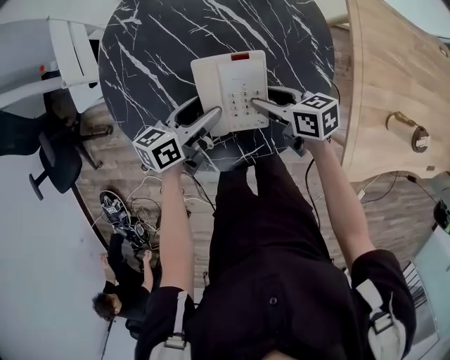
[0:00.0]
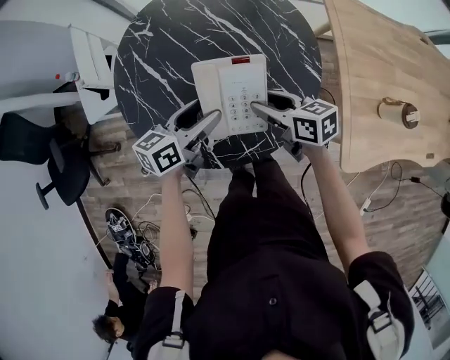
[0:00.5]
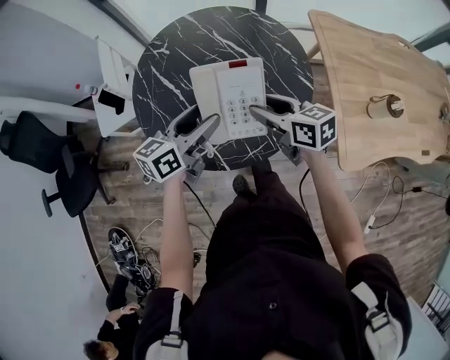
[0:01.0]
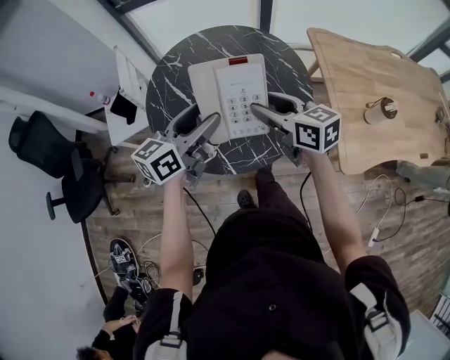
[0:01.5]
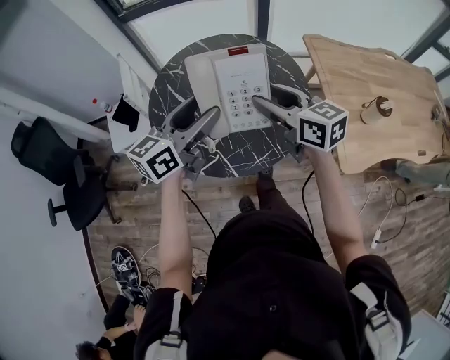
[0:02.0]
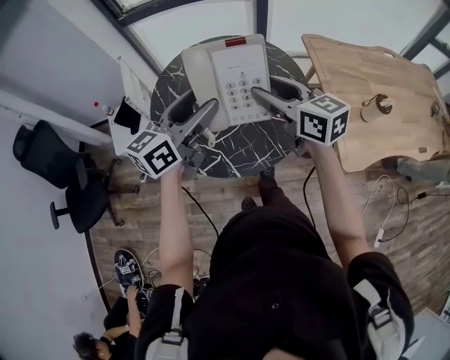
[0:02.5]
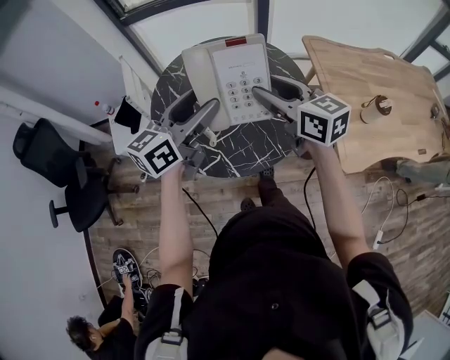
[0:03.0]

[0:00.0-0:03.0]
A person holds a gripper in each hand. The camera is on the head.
0:00.0 to 0:01.5: The right gripper is displaced upward by about 25 cm, and turns by approximately 30 degrees. The left gripper moves upward and backward, some 25 cm, and swivels roughly 30 degrees.
0:01.5 to 0:03.0: The grippers both shift upward by about 10 cm.

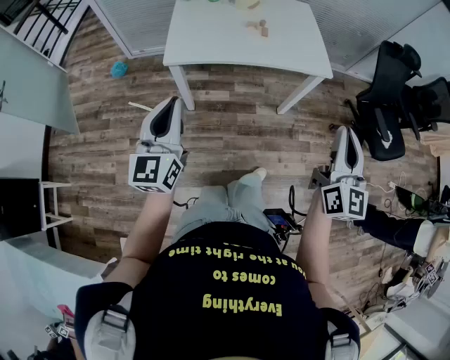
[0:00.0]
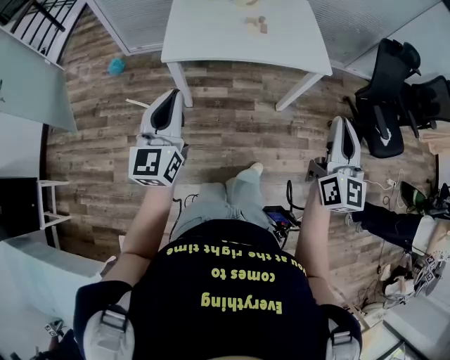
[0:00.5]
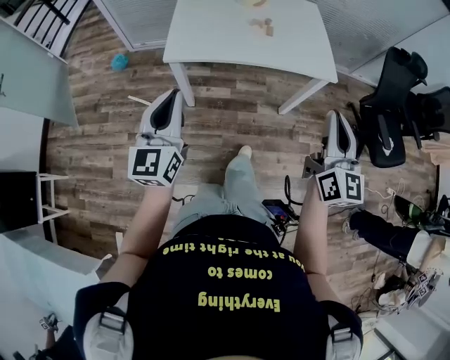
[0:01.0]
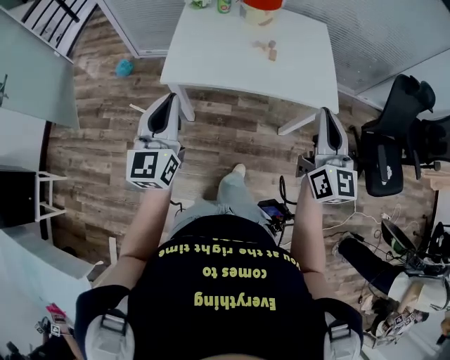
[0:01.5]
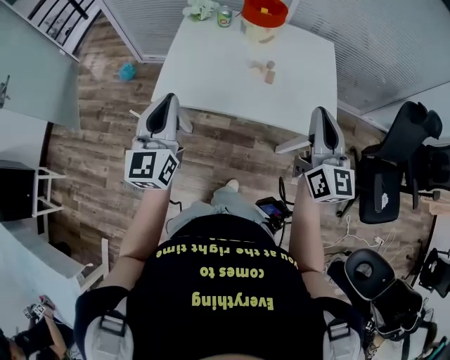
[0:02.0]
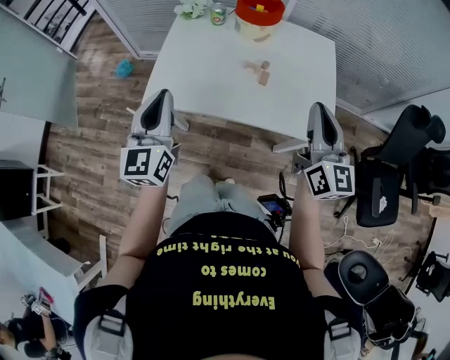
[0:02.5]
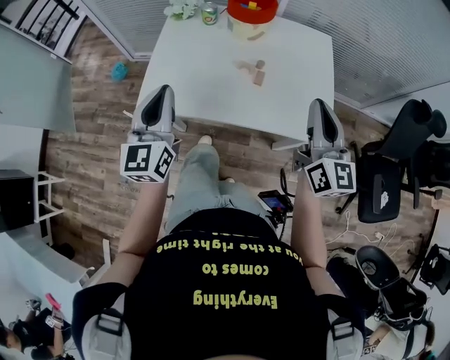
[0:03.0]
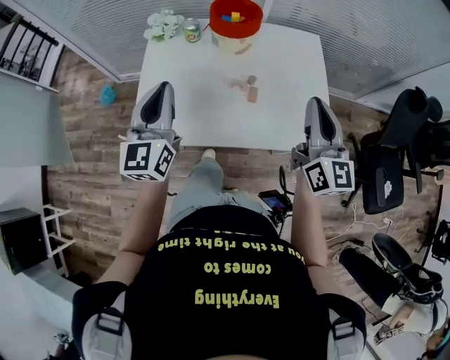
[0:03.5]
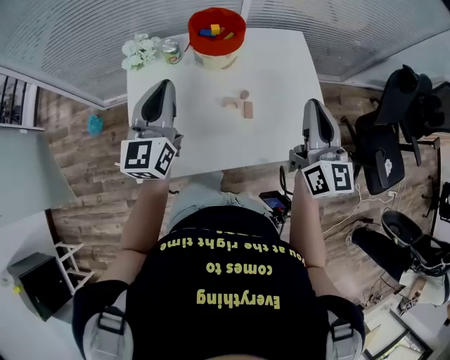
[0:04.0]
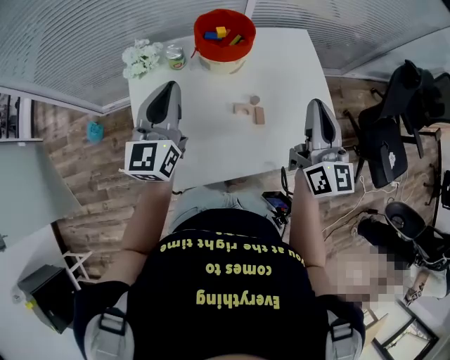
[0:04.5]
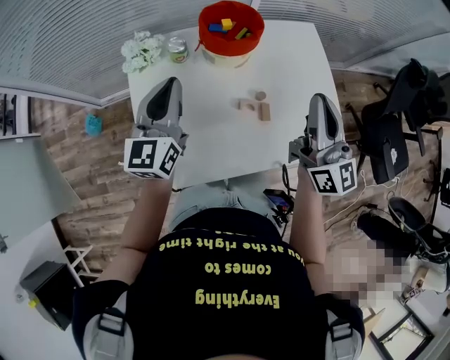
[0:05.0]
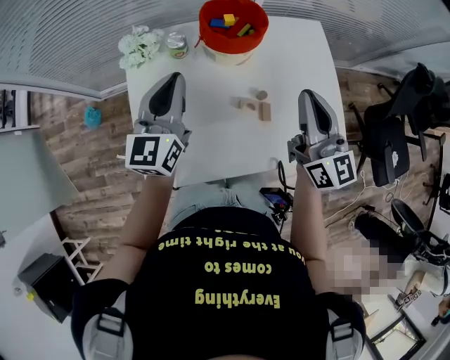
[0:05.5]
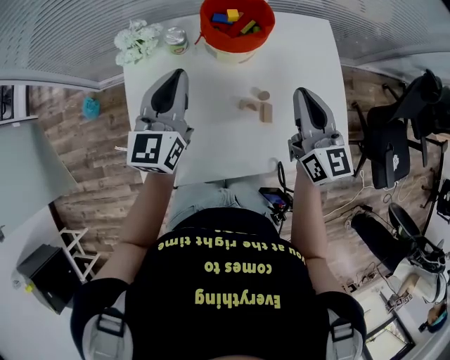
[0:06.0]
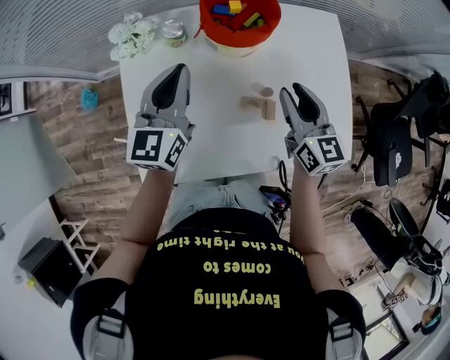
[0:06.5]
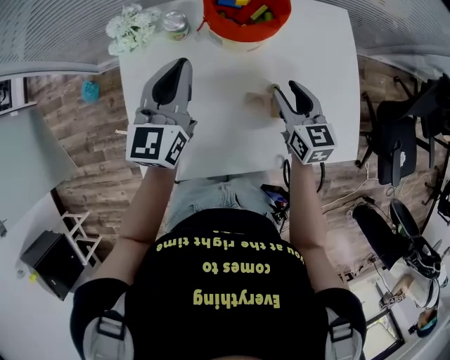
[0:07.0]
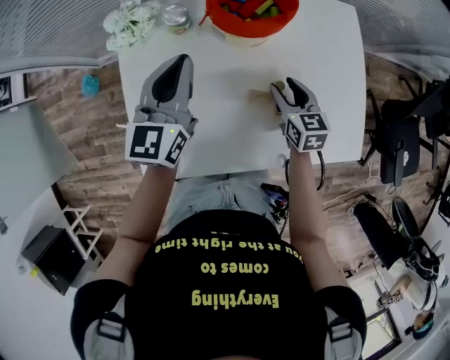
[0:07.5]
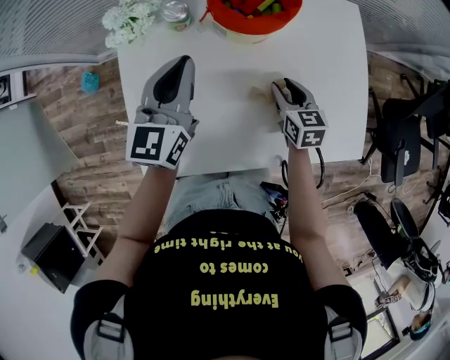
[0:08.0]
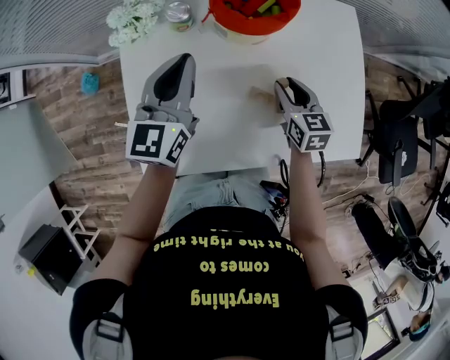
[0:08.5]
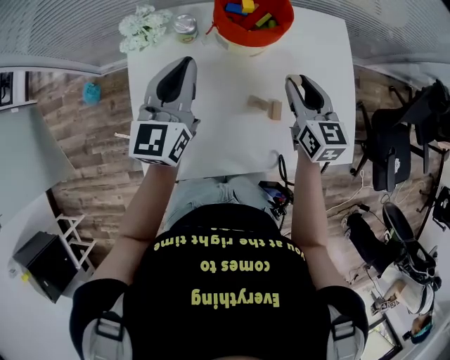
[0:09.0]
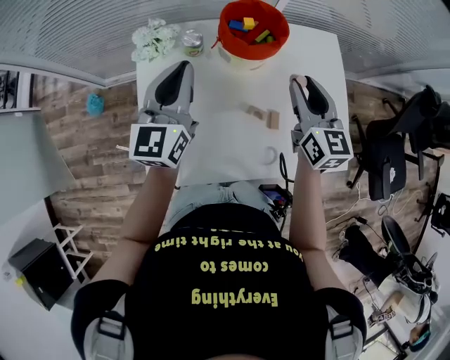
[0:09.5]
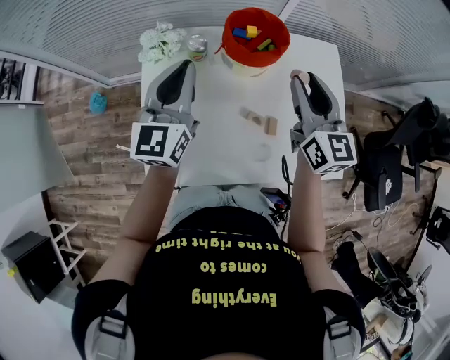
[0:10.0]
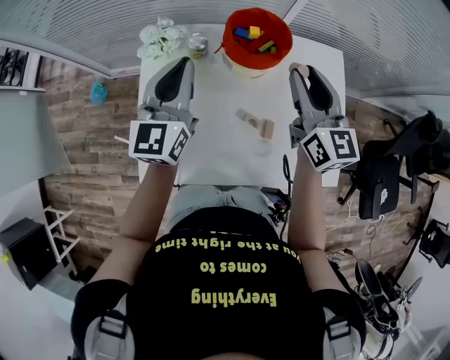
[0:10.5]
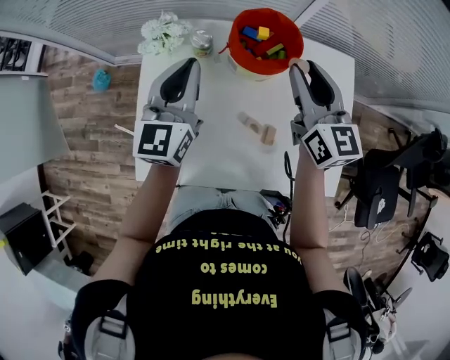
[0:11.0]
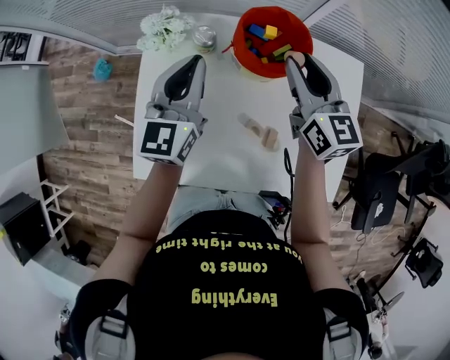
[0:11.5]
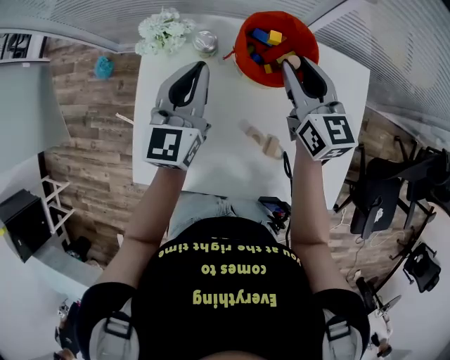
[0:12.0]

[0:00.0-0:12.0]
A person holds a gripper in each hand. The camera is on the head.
0:00.0 to 0:02.0: The grippers both shift forward by roughly 30 cm. The right gripper turns by about 20 degrees.
0:02.0 to 0:04.0: The right gripper is displaced forward by roughly 20 cm, while the left gripper heads forward, covering roughly 30 cm.
0:04.0 to 0:06.0: The right gripper is displaced forward, downward and to the left by approximately 15 cm; the left gripper heads forward and downward, covering approximately 10 cm.
0:06.0 to 0:08.0: The right gripper moves downward, some 25 cm, points its fingers approximately 30 degrees further downward, and opens its fingers; the left gripper is displaced downward by roughly 5 cm.
0:08.0 to 0:10.0: The right gripper heads upward, covering about 30 cm, and tips its fingers upward by approximately 30 degrees; the left gripper is displaced upward by approximately 10 cm.
0:10.0 to 0:12.0: The right gripper travels forward and downward by about 15 cm; the left gripper shifts some 10 cm downward and forward.

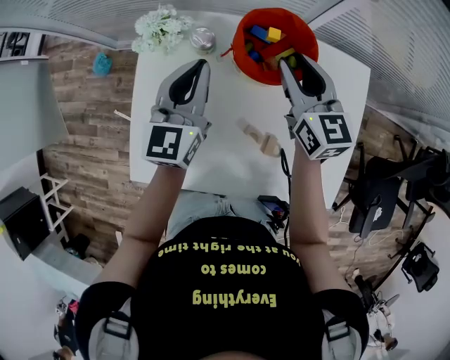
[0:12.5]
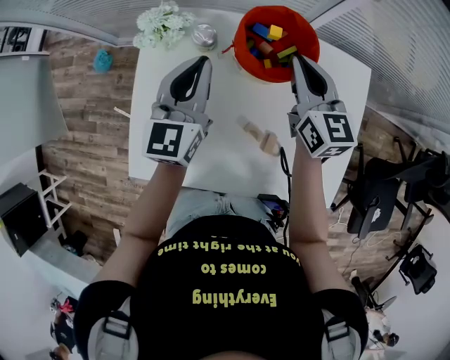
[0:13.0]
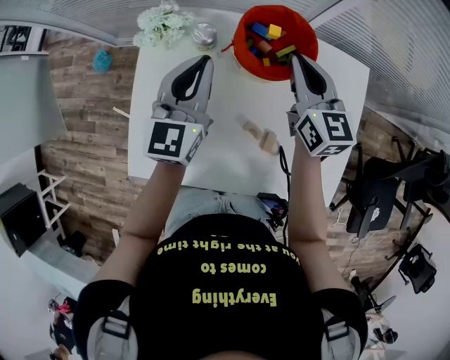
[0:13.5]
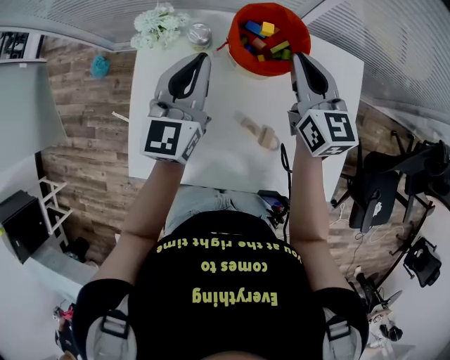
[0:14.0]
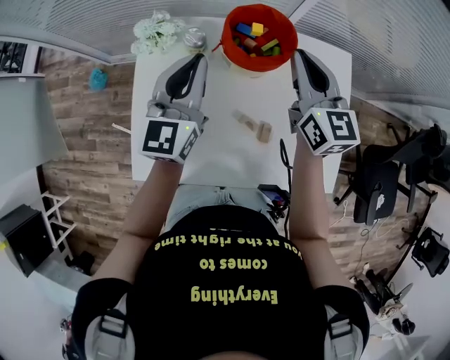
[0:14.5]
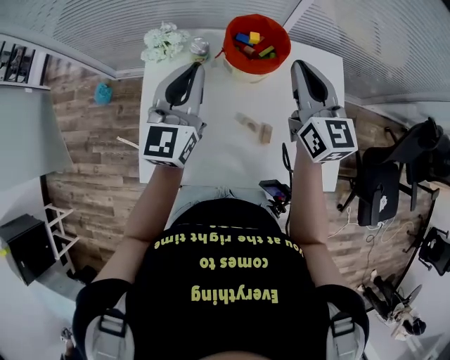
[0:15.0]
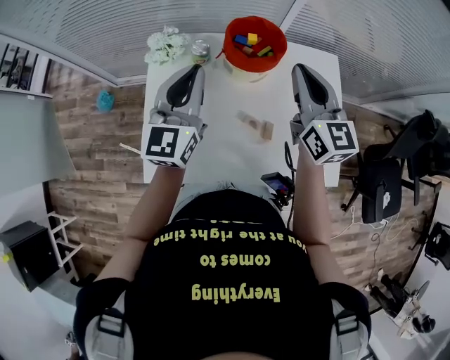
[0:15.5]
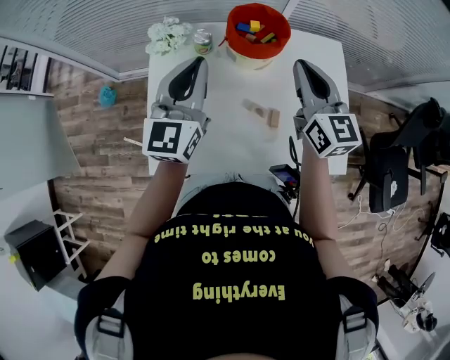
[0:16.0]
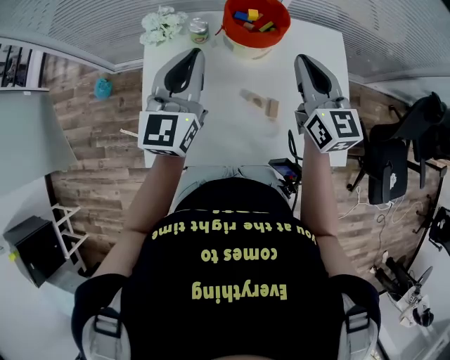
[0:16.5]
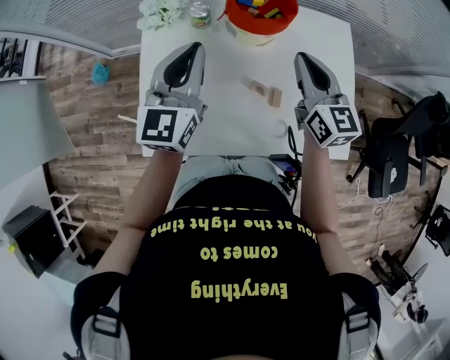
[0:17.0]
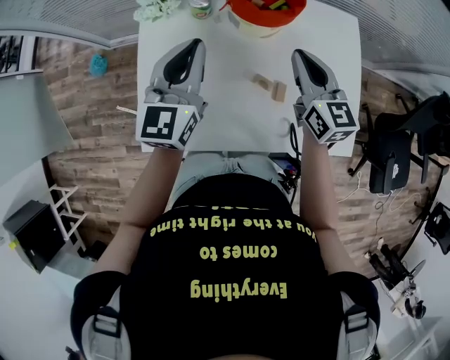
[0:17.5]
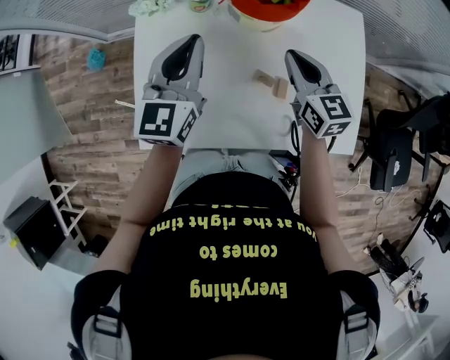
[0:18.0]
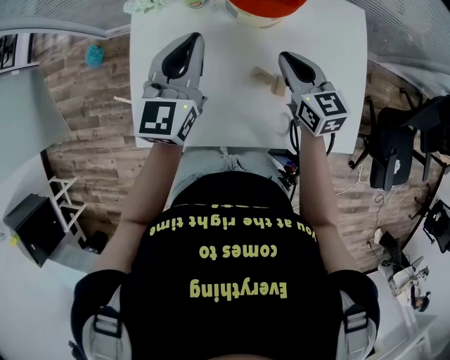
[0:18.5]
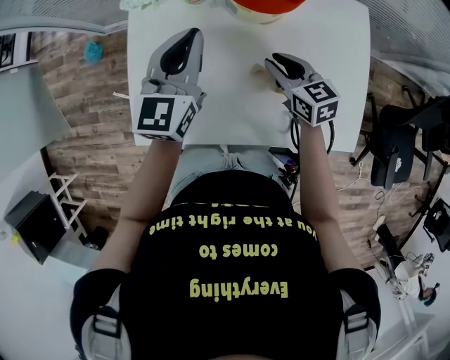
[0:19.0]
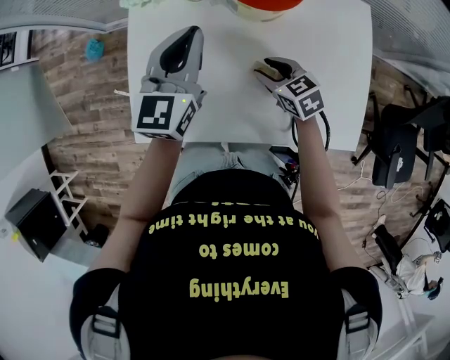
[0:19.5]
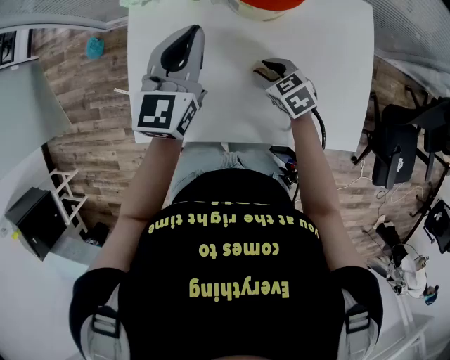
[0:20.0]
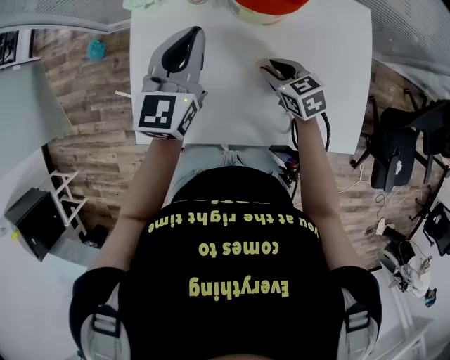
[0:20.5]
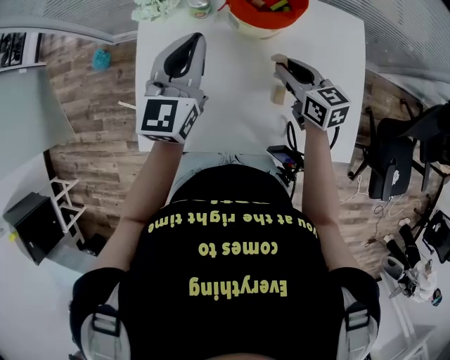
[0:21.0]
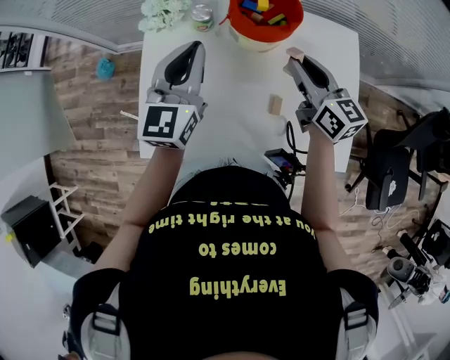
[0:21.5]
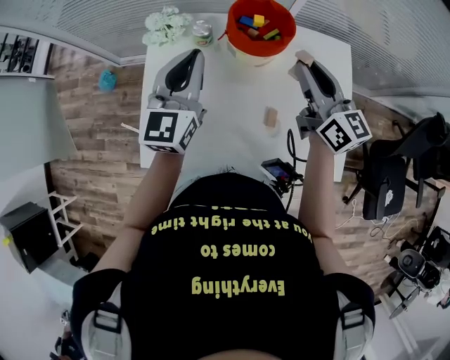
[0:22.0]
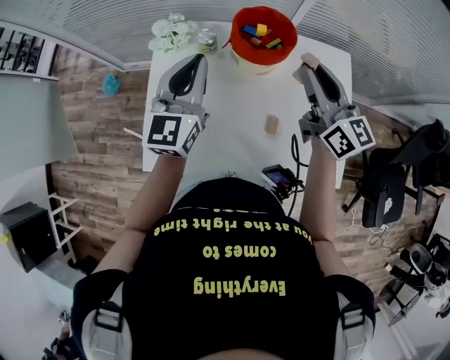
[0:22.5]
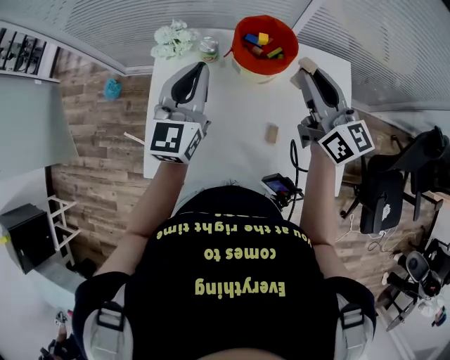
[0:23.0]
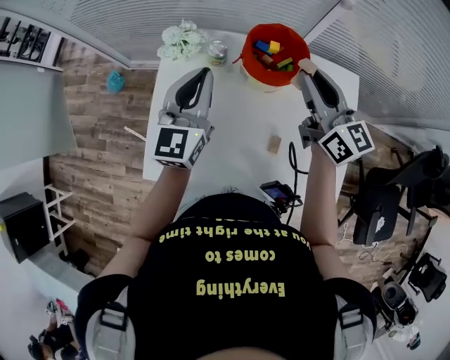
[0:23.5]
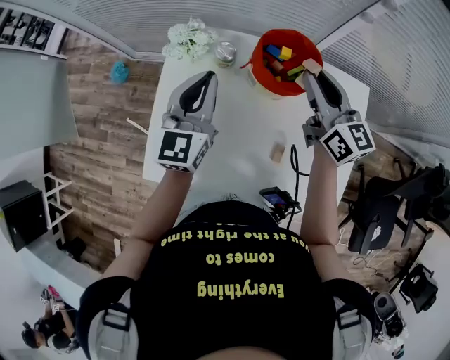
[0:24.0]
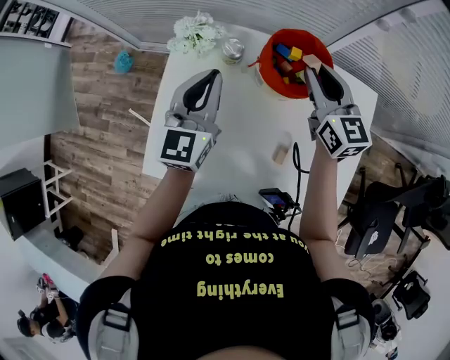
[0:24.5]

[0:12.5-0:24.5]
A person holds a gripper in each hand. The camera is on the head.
0:12.5 to 0:14.5: The grippers both shift upward by approximately 5 cm. The right gripper closes up.
0:14.5 to 0:16.5: The grippers both shift backward by some 10 cm.
0:16.5 to 0:18.5: The right gripper is displaced downward by approximately 15 cm, and turns by about 20 degrees. Meanwhile the left gripper travels downward by roughly 10 cm.
0:18.5 to 0:20.5: The right gripper goes roughly 10 cm downward, changes its angle by some 30 degrees, and opens its fingers.
0:20.5 to 0:22.5: The right gripper is displaced upward by about 30 cm, and points its fingers approximately 50 degrees further upward, while the left gripper is displaced upward by approximately 5 cm.
0:22.5 to 0:24.5: The right gripper moves forward and downward, roughly 15 cm, while the left gripper moves downward, some 5 cm.
